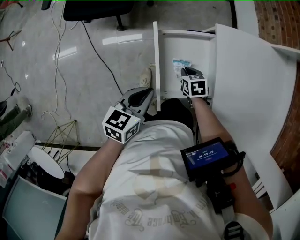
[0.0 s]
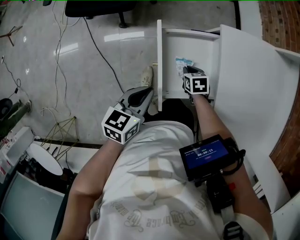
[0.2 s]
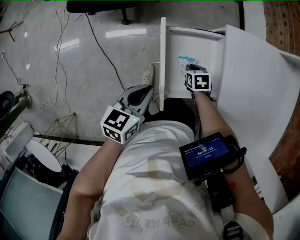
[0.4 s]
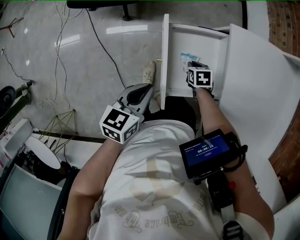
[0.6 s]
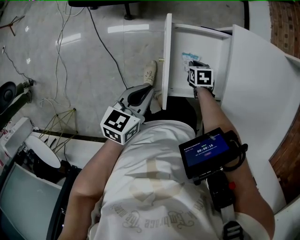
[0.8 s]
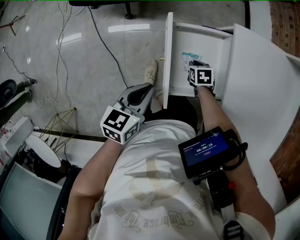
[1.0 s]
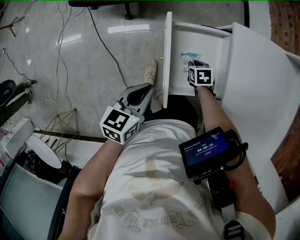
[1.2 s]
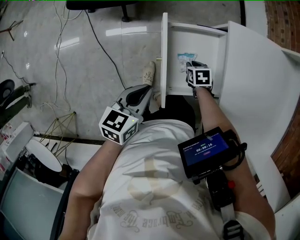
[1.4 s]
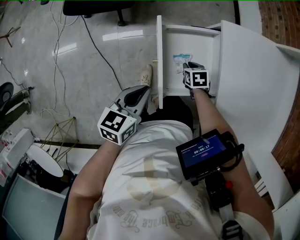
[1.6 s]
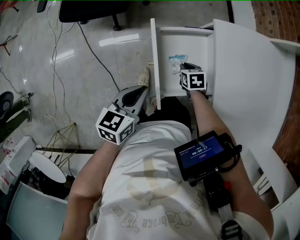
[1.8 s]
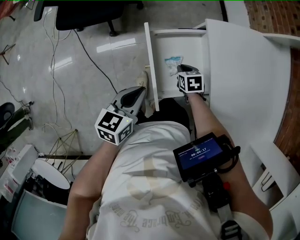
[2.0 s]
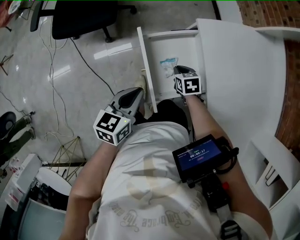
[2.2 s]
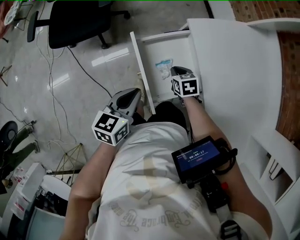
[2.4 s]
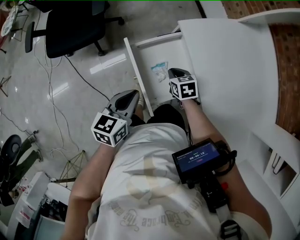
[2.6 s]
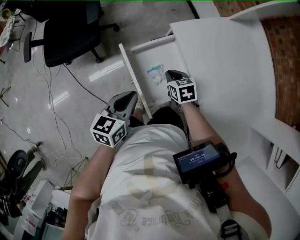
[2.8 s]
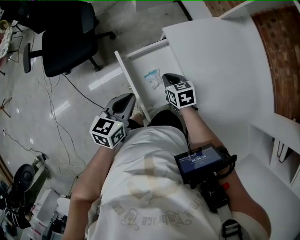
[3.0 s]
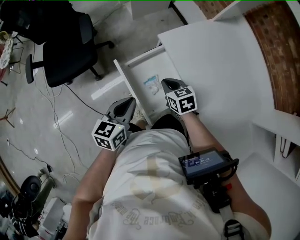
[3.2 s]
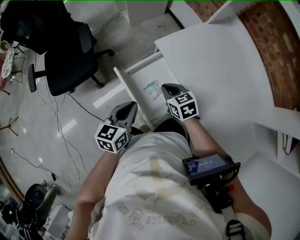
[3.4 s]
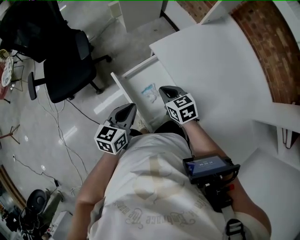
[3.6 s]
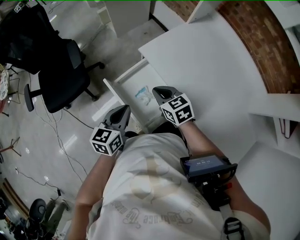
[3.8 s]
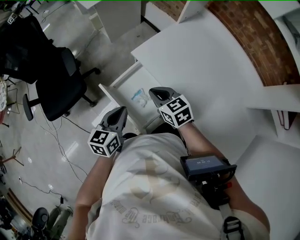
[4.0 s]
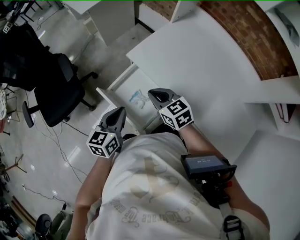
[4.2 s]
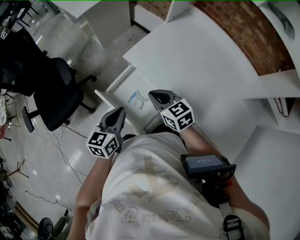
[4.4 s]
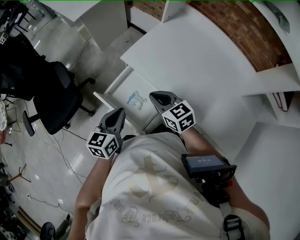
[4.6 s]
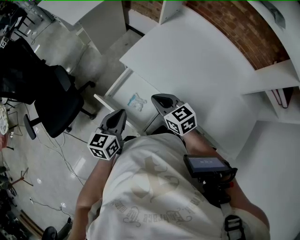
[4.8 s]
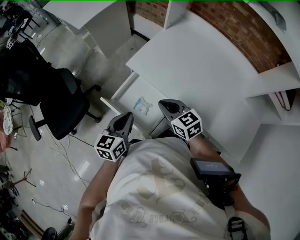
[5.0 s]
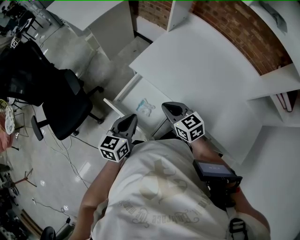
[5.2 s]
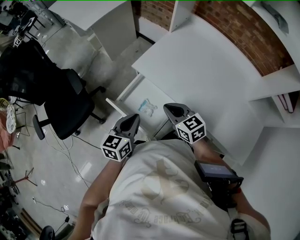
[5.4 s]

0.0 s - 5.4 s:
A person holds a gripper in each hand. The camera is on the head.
0.0 s - 1.4 s: The right gripper shifts some 5 cm downward.
1.4 s - 2.8 s: The left gripper shifts by some 5 cm, while the right gripper heads upward, covering some 15 cm, and turns by about 20 degrees.
2.8 s - 4.0 s: The left gripper ends up some 5 cm from where it was; the right gripper heads upward, covering about 15 cm, and swivels approximately 20 degrees.
4.0 s - 5.4 s: The right gripper shifts approximately 5 cm backward.

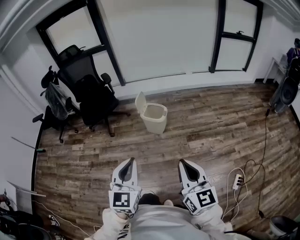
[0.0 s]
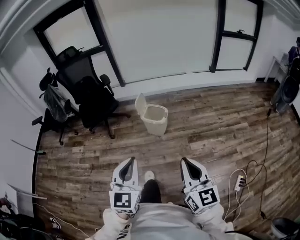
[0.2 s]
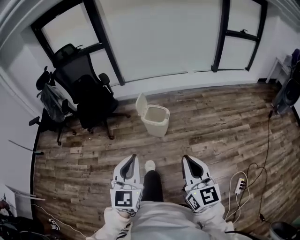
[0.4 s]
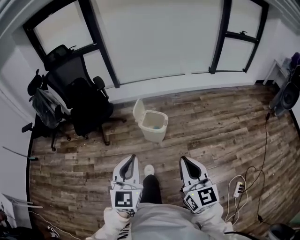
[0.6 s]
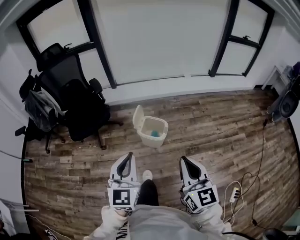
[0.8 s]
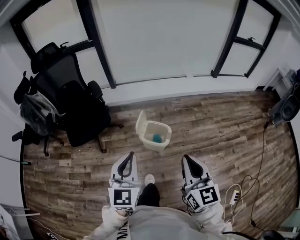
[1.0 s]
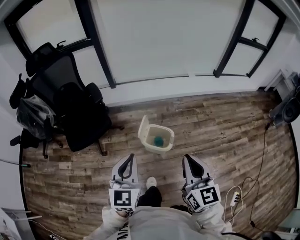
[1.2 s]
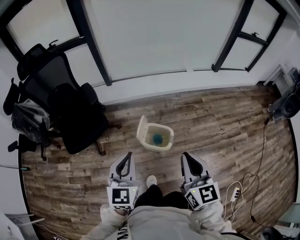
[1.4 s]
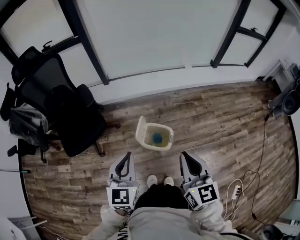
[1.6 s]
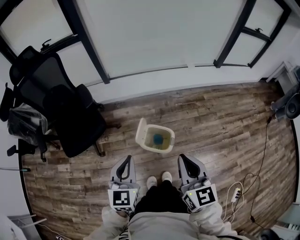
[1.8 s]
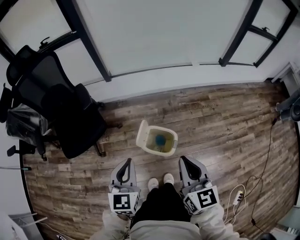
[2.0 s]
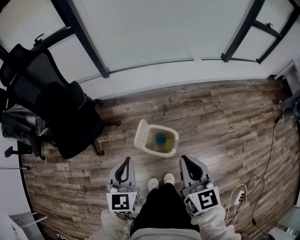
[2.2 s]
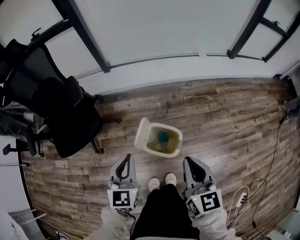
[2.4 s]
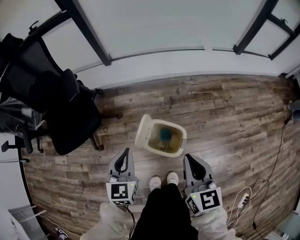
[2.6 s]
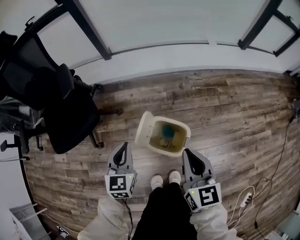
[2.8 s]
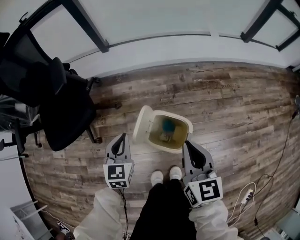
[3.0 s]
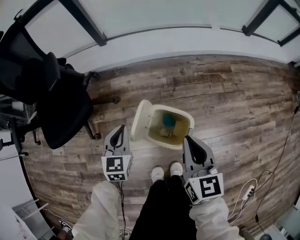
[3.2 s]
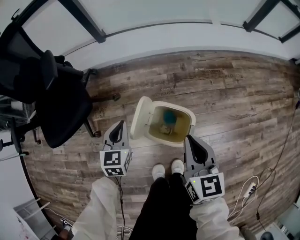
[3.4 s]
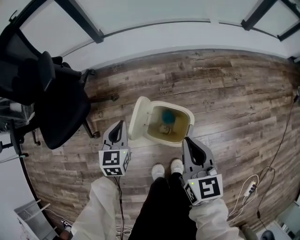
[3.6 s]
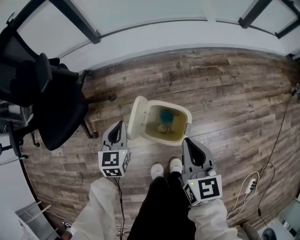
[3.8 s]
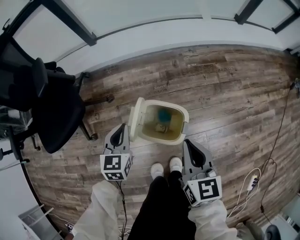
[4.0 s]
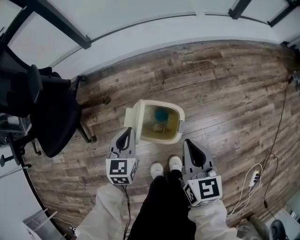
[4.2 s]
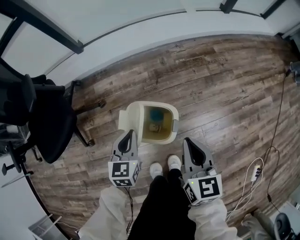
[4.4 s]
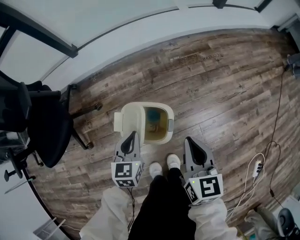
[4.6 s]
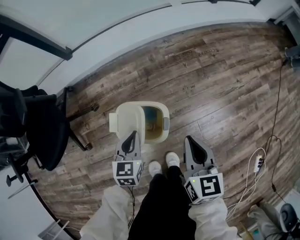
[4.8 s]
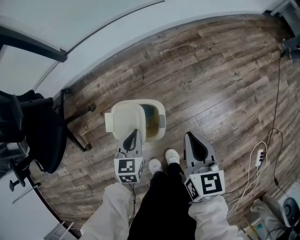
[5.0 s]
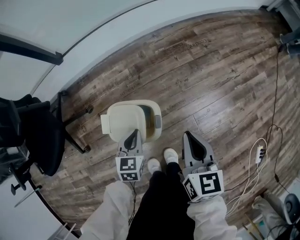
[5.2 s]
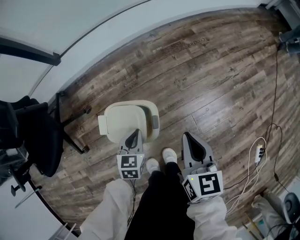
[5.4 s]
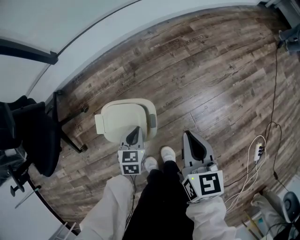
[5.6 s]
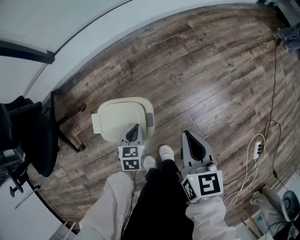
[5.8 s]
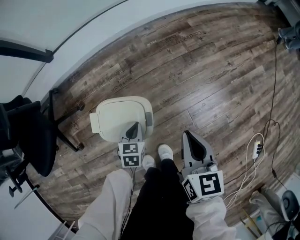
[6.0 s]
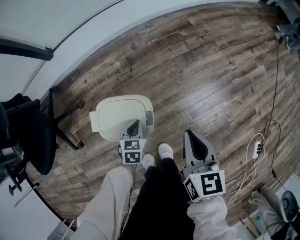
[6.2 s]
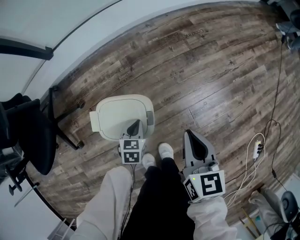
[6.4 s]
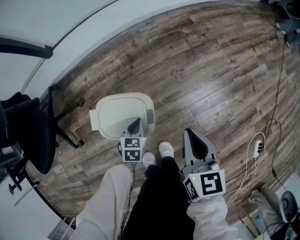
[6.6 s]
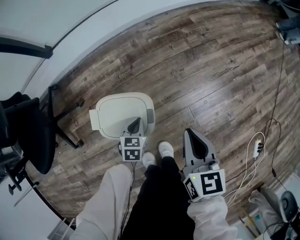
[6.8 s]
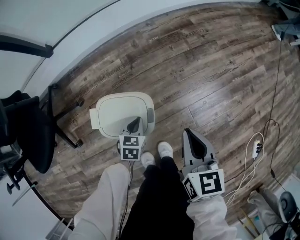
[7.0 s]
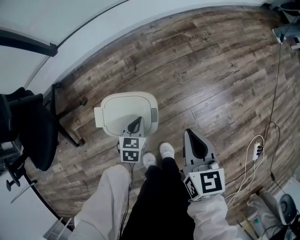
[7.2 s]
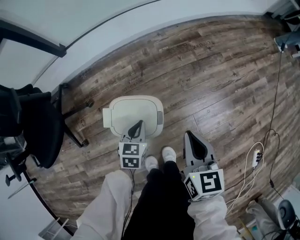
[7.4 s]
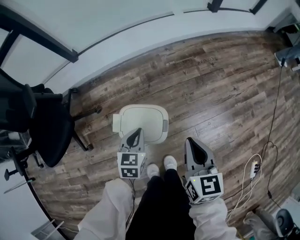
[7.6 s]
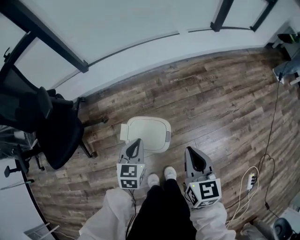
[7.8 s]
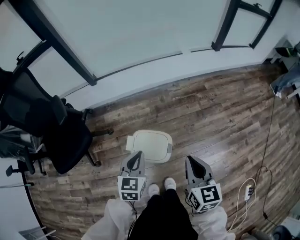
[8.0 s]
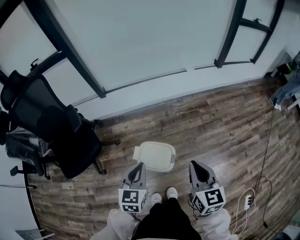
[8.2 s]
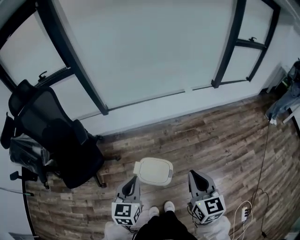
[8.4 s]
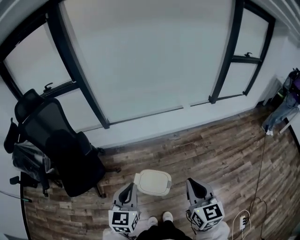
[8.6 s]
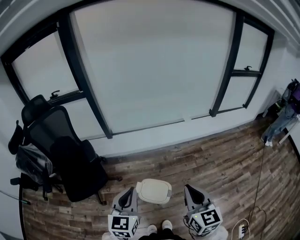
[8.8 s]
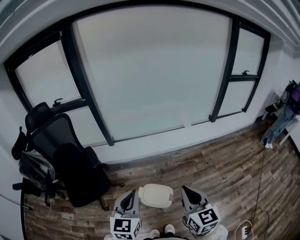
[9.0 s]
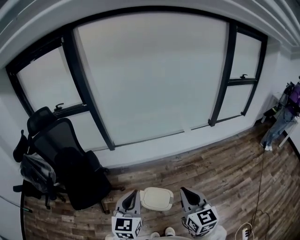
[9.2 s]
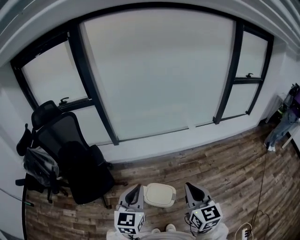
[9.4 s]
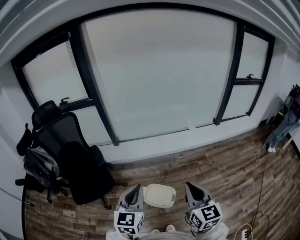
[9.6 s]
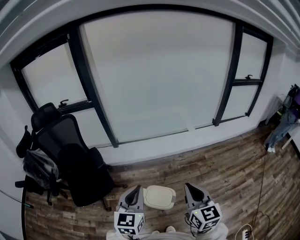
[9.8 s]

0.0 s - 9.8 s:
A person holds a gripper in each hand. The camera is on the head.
0.0 s - 1.4 s: The two grippers travel together, forward, about 60 cm.
1.4 s - 2.8 s: The grippers both shift downward and forward by roughly 35 cm.
2.8 s - 4.2 s: Both grippers move downward and to the right, approximately 15 cm.
4.2 s - 5.6 s: The left gripper moves to the right and downward, approximately 20 cm, and changes its angle by about 20 degrees, while the right gripper moves to the right, approximately 15 cm.
5.6 s - 7.0 s: The left gripper shifts roughly 5 cm downward.
7.0 s - 8.4 s: The two grippers go about 50 cm upward. The left gripper angles its fingers upward, by about 30 degrees, while the right gripper changes its angle by approximately 20 degrees.
8.4 s - 9.8 s: The two grippers go approximately 15 cm upward.

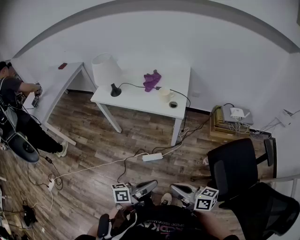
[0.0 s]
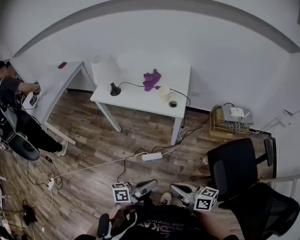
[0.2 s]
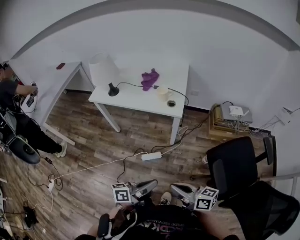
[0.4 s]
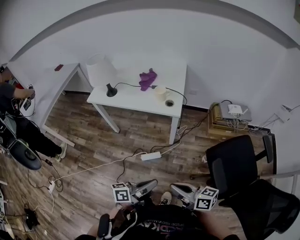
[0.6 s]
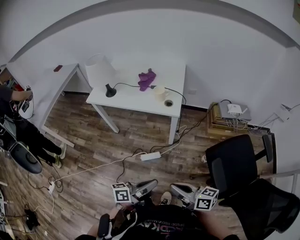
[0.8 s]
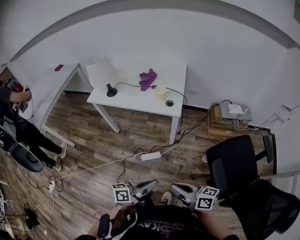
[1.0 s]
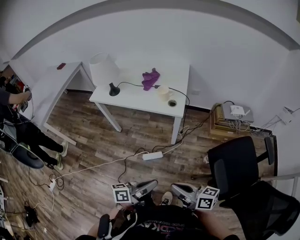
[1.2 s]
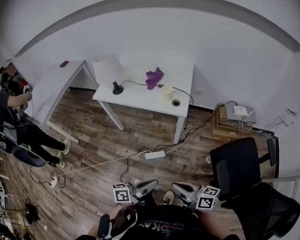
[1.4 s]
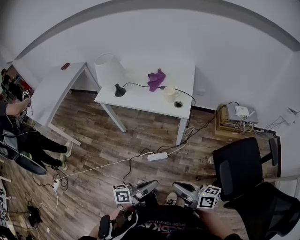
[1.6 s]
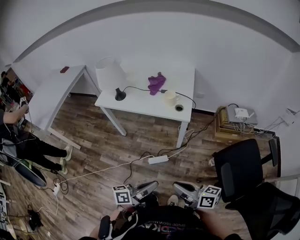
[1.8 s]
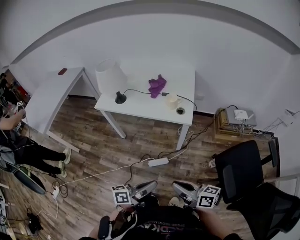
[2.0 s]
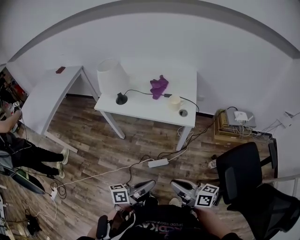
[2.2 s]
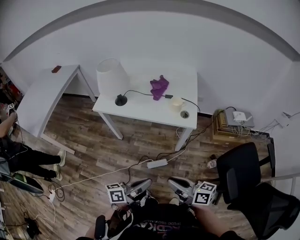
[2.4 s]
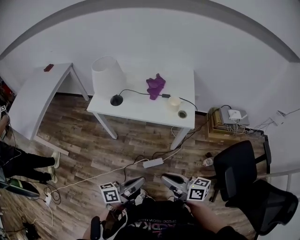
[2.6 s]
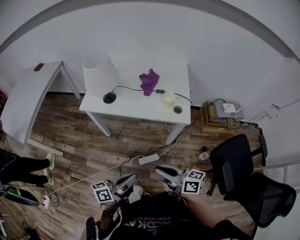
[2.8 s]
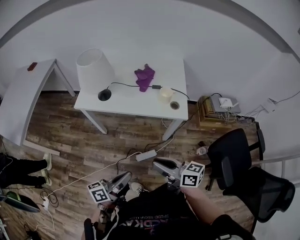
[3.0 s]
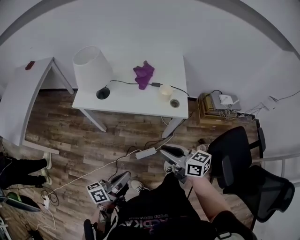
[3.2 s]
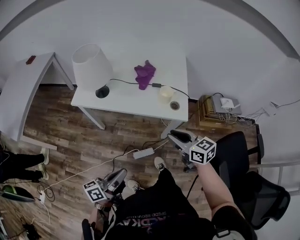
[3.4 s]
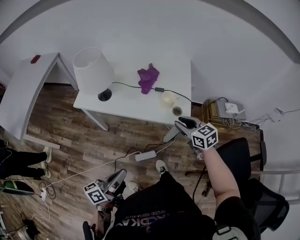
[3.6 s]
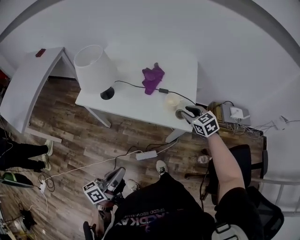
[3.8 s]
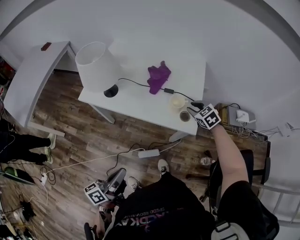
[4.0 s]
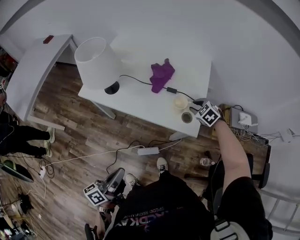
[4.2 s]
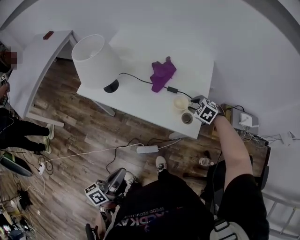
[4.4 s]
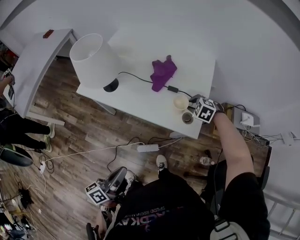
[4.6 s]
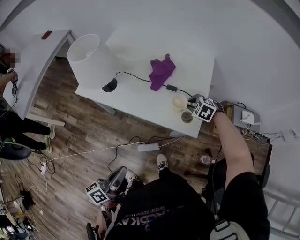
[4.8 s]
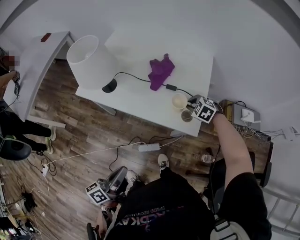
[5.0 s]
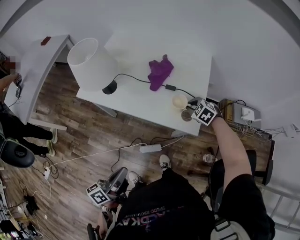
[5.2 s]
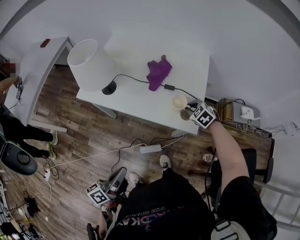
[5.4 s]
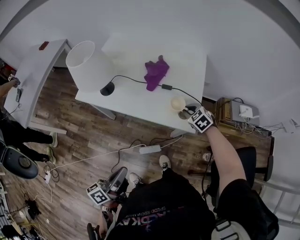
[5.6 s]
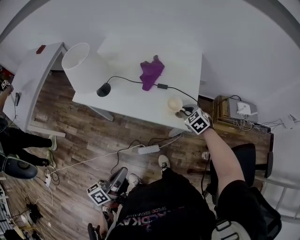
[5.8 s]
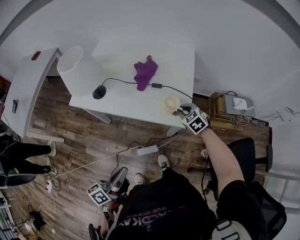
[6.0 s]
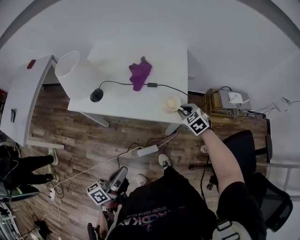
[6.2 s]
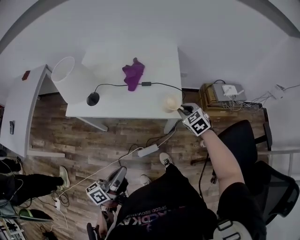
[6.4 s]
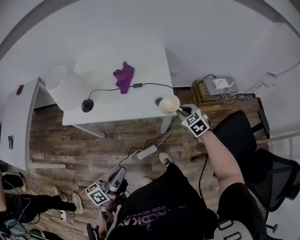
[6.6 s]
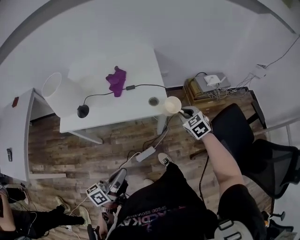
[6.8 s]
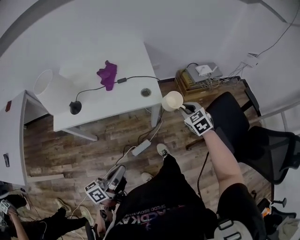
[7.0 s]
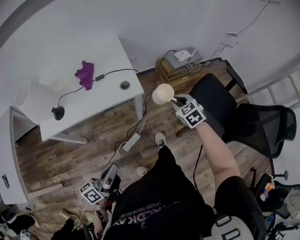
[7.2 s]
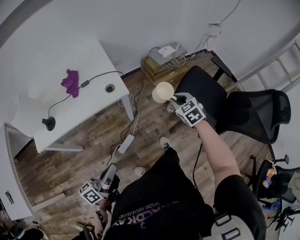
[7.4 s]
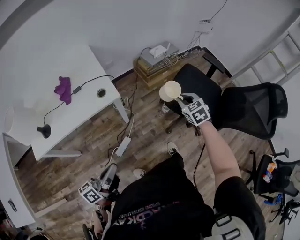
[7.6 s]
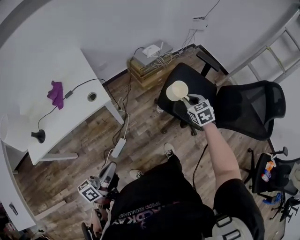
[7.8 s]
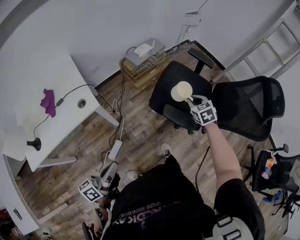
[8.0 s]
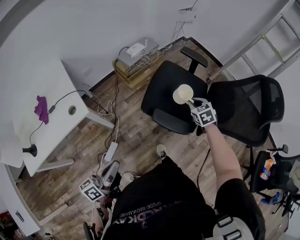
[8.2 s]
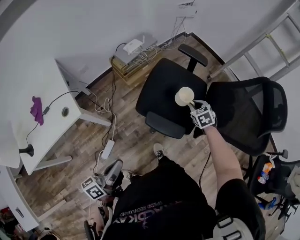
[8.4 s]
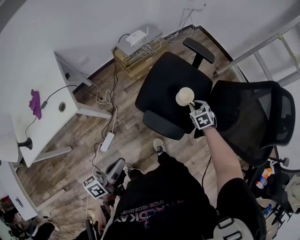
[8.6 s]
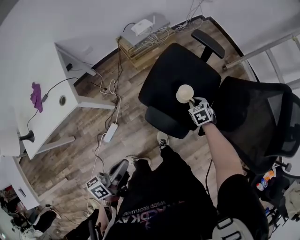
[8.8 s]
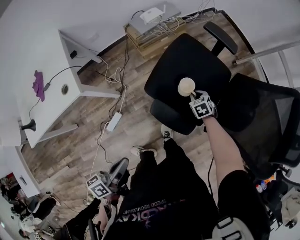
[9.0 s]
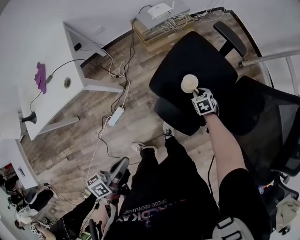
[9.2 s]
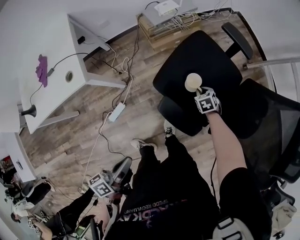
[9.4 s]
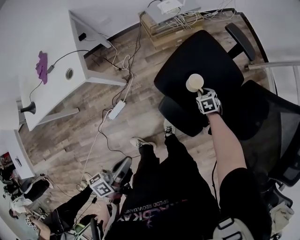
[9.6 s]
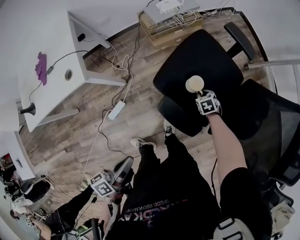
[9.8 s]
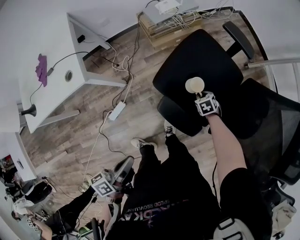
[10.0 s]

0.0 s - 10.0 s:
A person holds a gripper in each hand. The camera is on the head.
0.0 s - 1.4 s: The grippers move only a little.
1.4 s - 2.8 s: Both grippers move to the left and forward, about 25 cm.
2.8 s - 4.2 s: The right gripper heads forward and to the right, covering about 50 cm, and tilts its fingers approximately 50 degrees downward; the left gripper moves forward, about 10 cm, and changes its angle by some 30 degrees.
4.2 s - 5.8 s: The right gripper shifts by roughly 5 cm.
5.8 s - 7.2 s: The right gripper shifts by roughly 30 cm, and changes its angle by about 40 degrees. Meanwhile the left gripper changes place by about 5 cm, and turns by about 40 degrees.
7.2 s - 8.6 s: The left gripper moves to the right and forward, some 40 cm, while the right gripper goes about 50 cm to the right, and rotates roughly 30 degrees.
8.6 s - 10.0 s: The right gripper travels downward by some 15 cm, while the left gripper ends up roughly 5 cm from where it was.
